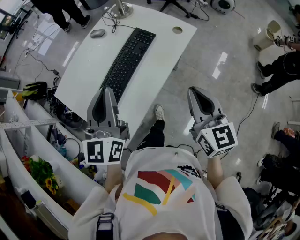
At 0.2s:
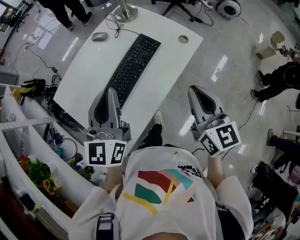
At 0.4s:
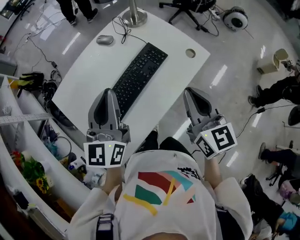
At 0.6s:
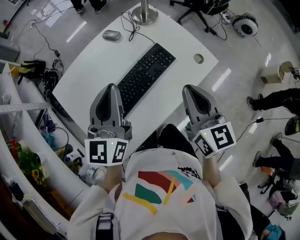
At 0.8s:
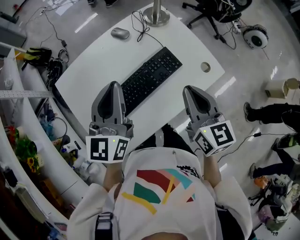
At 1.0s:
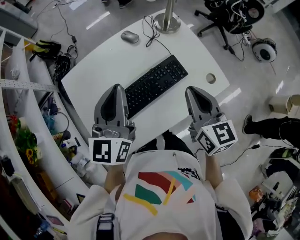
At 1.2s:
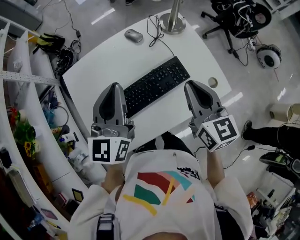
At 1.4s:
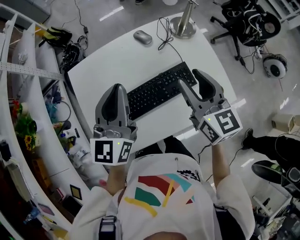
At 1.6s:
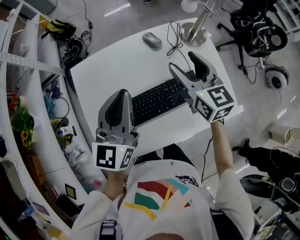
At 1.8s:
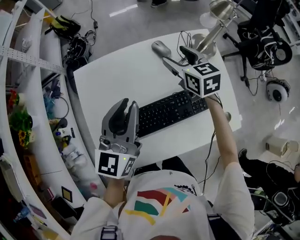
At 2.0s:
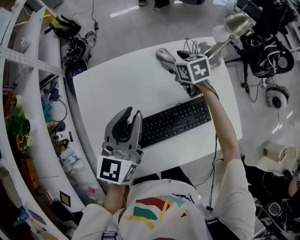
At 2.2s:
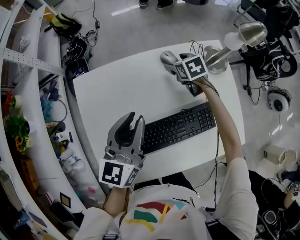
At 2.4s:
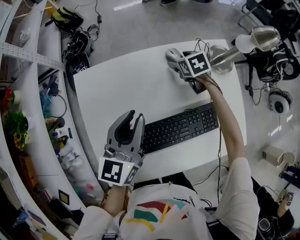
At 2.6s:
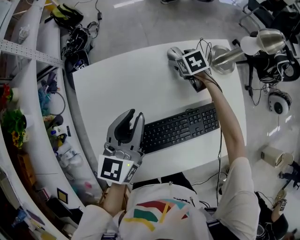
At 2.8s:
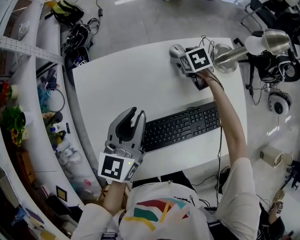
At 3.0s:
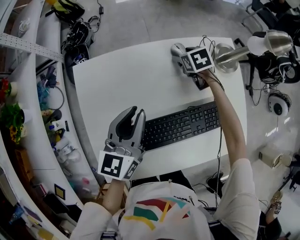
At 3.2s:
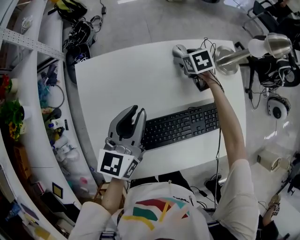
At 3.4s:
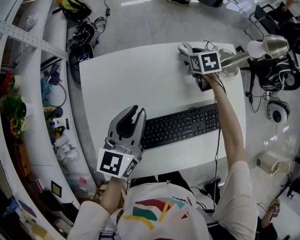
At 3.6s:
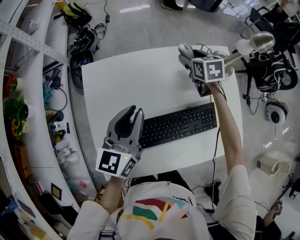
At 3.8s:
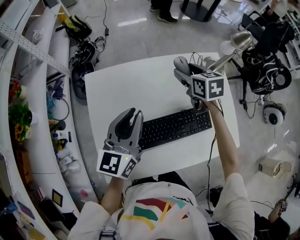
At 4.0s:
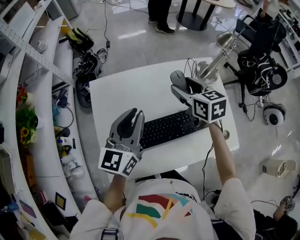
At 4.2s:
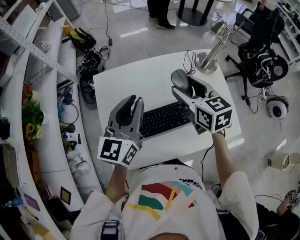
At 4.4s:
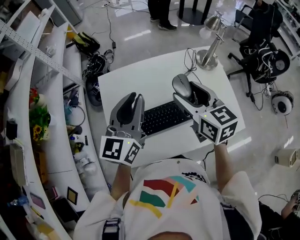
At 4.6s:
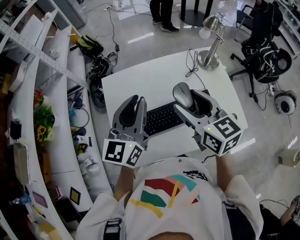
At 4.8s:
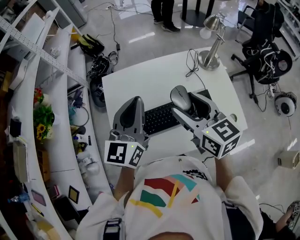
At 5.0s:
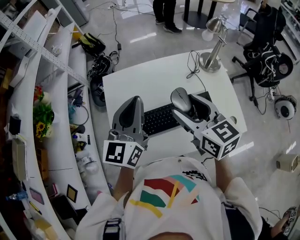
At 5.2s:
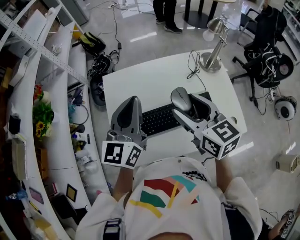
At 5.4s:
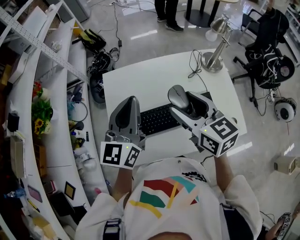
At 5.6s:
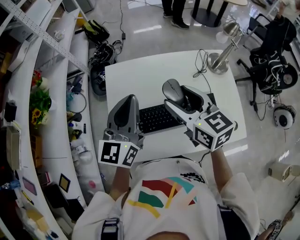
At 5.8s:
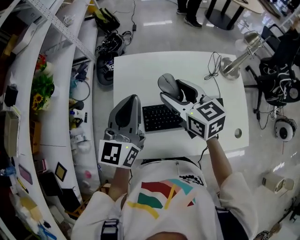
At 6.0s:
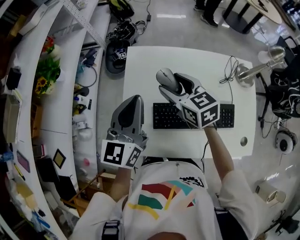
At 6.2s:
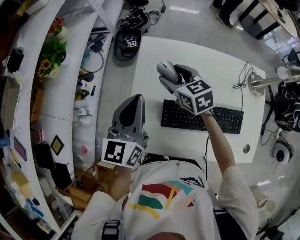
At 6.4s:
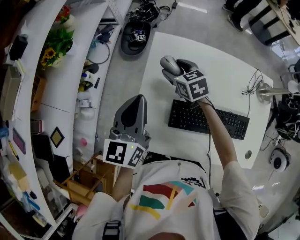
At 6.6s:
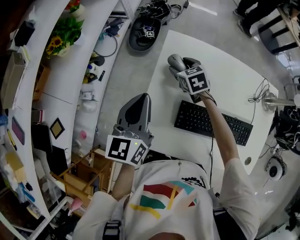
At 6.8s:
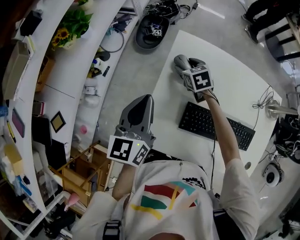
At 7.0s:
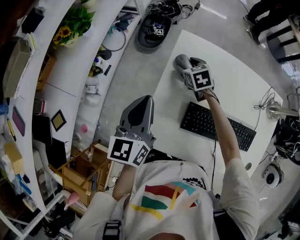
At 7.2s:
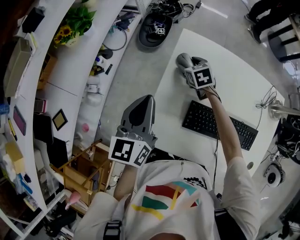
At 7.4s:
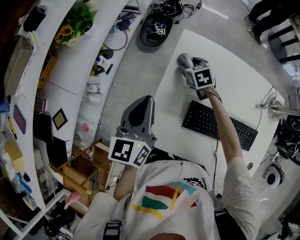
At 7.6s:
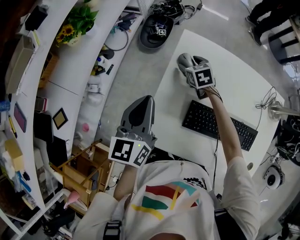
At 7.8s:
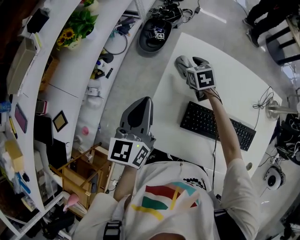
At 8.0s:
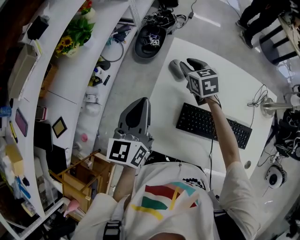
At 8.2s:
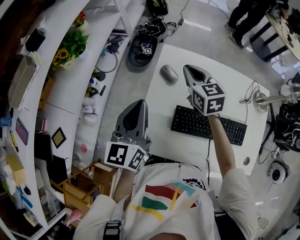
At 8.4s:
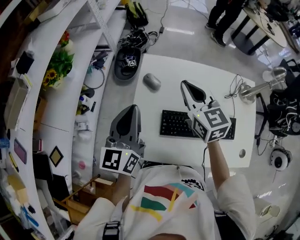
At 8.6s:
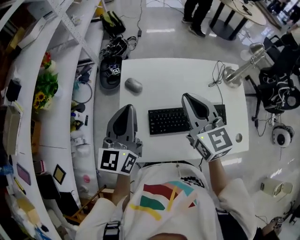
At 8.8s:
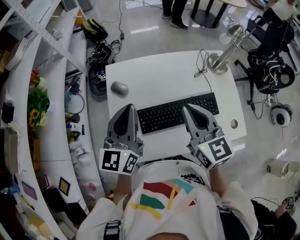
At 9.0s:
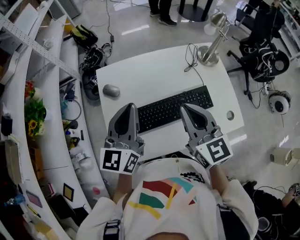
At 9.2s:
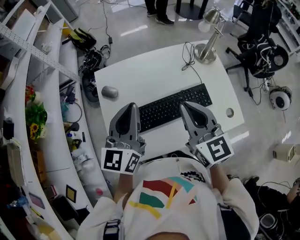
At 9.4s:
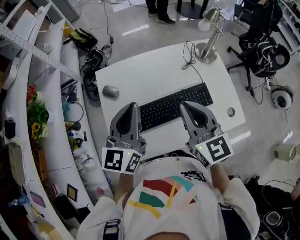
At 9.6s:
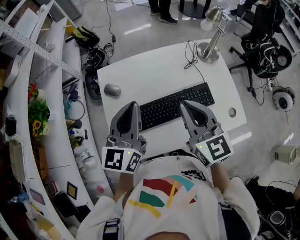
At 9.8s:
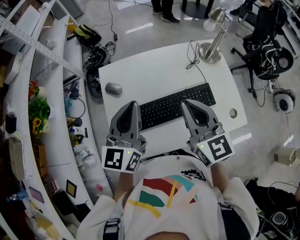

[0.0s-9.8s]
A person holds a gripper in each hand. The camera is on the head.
0.0s to 1.4s: The right gripper ends up roughly 30 cm from where it was, turns by about 40 degrees, and opens its fingers. The left gripper moves about 15 cm, and rotates approximately 20 degrees.
1.4s to 2.8s: The right gripper is displaced forward and downward by roughly 40 cm, tips its fingers downward by approximately 50 degrees, and opens its fingers. Meanwhile the left gripper travels downward, forward and to the left by approximately 20 cm.
2.8s to 4.2s: The right gripper moves upward and backward, roughly 40 cm, and tilts its fingers roughly 40 degrees upward. Meanwhile the left gripper is displaced upward and backward by roughly 15 cm.
4.2s to 5.6s: The left gripper moves about 5 cm. Meanwhile the right gripper is displaced to the left and backward by roughly 10 cm.
5.6s to 7.0s: The left gripper goes about 25 cm to the left and downward, and swivels approximately 30 degrees, while the right gripper travels downward, forward and to the left by about 40 cm, and tilts its fingers some 30 degrees downward.
7.0s to 8.4s: The right gripper travels upward and backward by about 30 cm, tilts its fingers approximately 30 degrees upward, and closes its fingers; the left gripper moves upward, about 10 cm.
8.4s to 9.8s: The right gripper travels to the right and backward by some 25 cm, and swivels about 20 degrees. Meanwhile the left gripper shifts about 20 cm to the right, and rotates roughly 20 degrees.

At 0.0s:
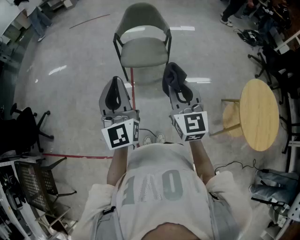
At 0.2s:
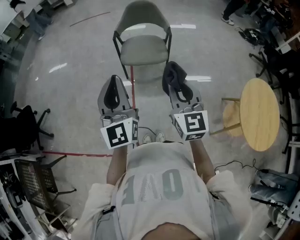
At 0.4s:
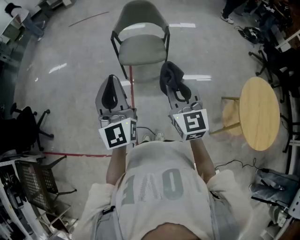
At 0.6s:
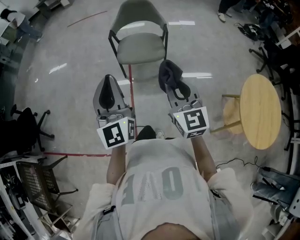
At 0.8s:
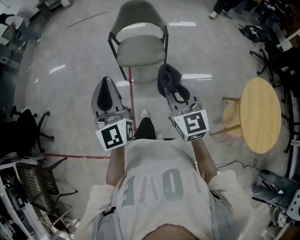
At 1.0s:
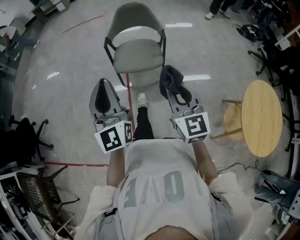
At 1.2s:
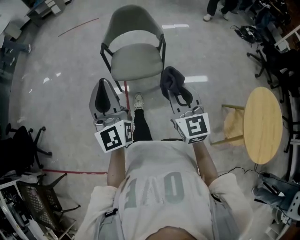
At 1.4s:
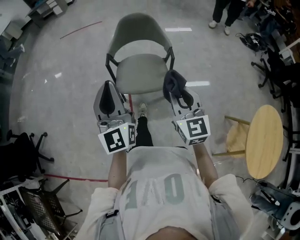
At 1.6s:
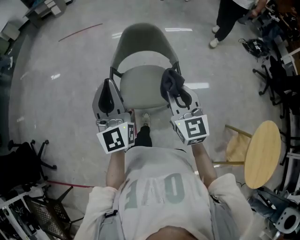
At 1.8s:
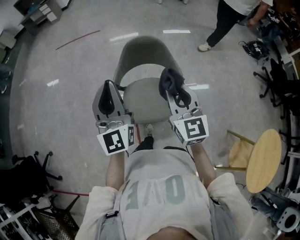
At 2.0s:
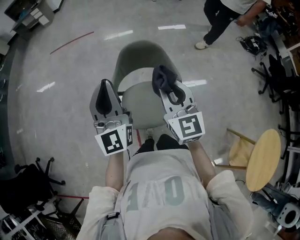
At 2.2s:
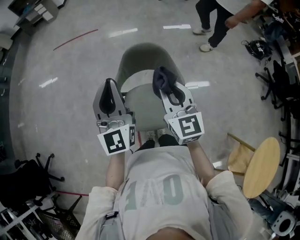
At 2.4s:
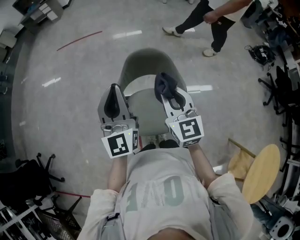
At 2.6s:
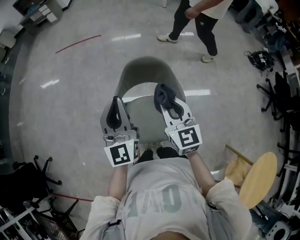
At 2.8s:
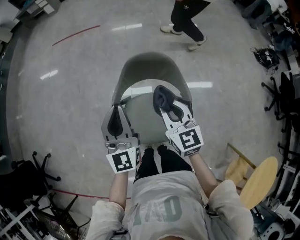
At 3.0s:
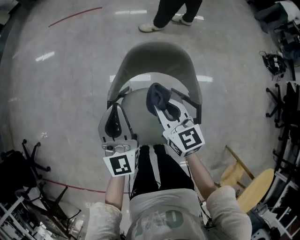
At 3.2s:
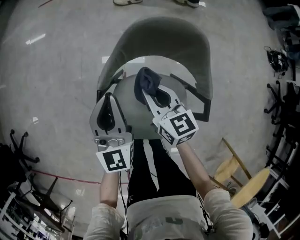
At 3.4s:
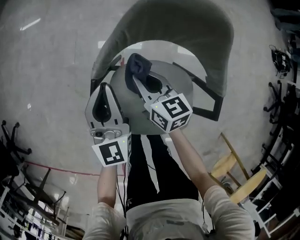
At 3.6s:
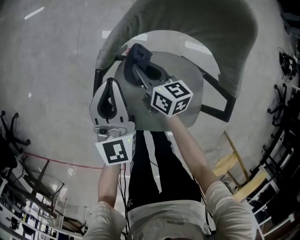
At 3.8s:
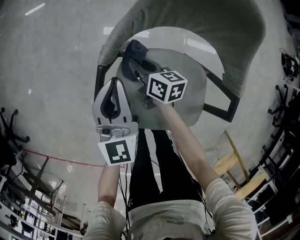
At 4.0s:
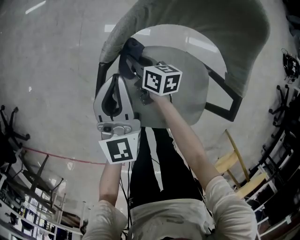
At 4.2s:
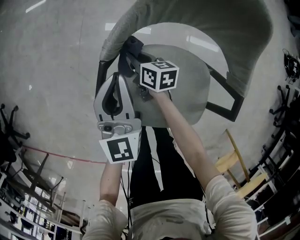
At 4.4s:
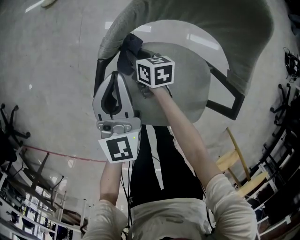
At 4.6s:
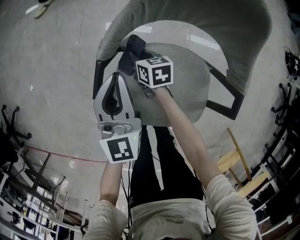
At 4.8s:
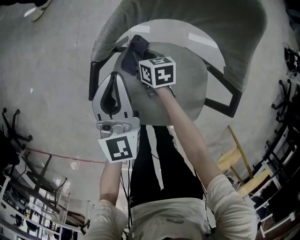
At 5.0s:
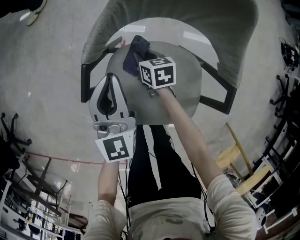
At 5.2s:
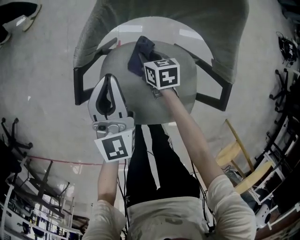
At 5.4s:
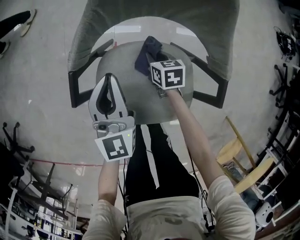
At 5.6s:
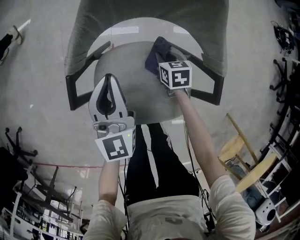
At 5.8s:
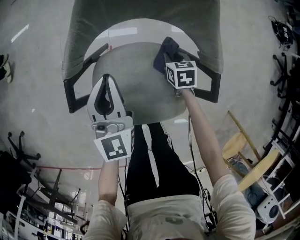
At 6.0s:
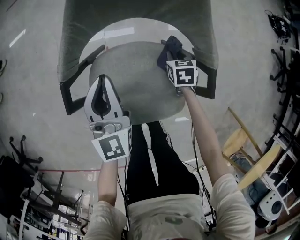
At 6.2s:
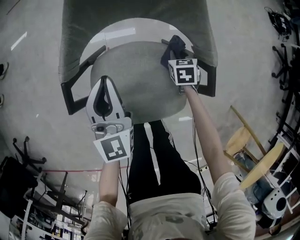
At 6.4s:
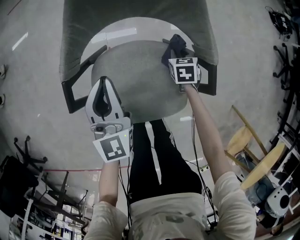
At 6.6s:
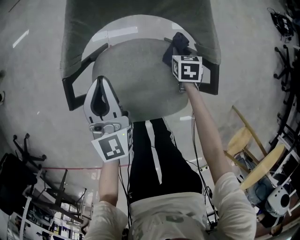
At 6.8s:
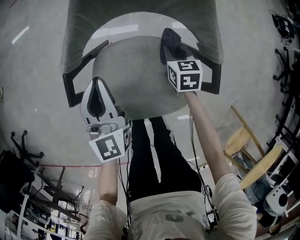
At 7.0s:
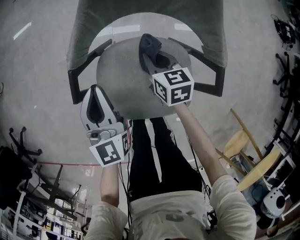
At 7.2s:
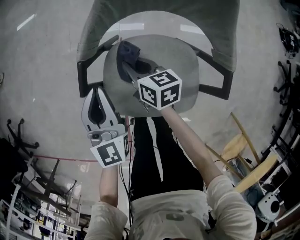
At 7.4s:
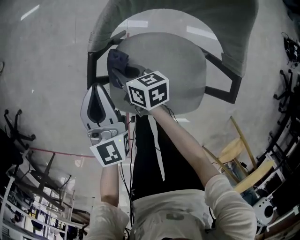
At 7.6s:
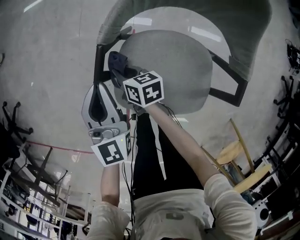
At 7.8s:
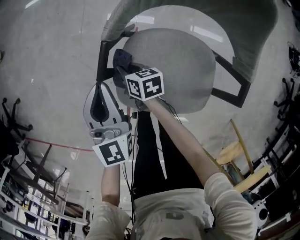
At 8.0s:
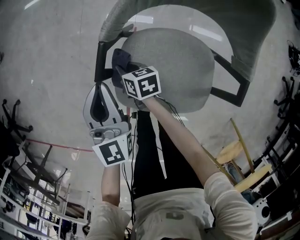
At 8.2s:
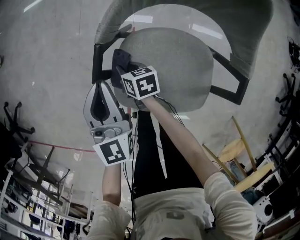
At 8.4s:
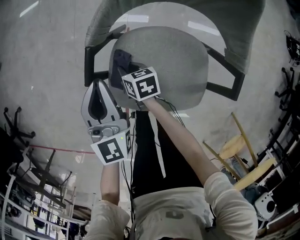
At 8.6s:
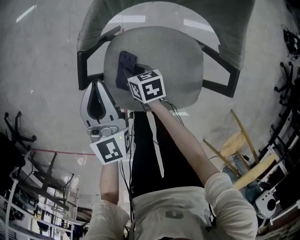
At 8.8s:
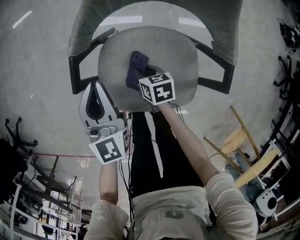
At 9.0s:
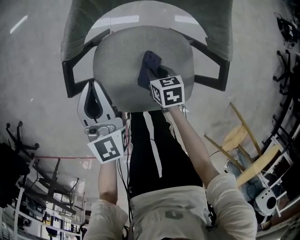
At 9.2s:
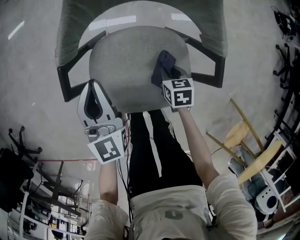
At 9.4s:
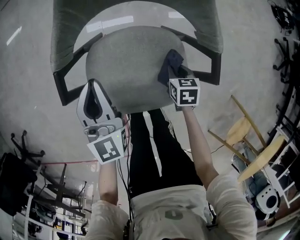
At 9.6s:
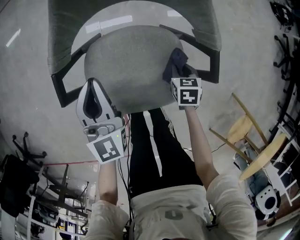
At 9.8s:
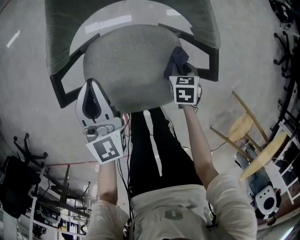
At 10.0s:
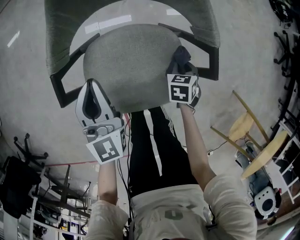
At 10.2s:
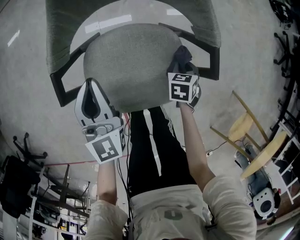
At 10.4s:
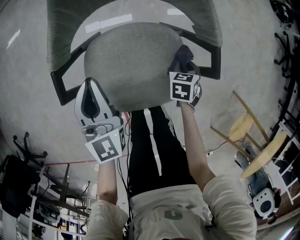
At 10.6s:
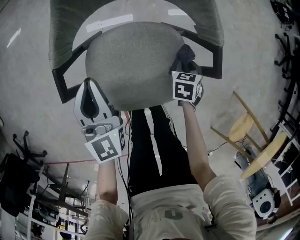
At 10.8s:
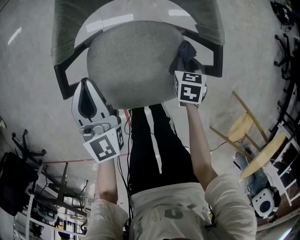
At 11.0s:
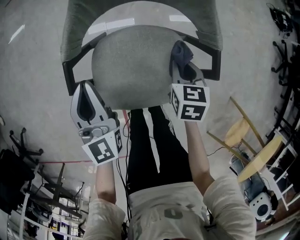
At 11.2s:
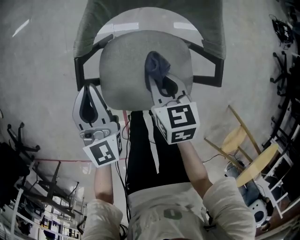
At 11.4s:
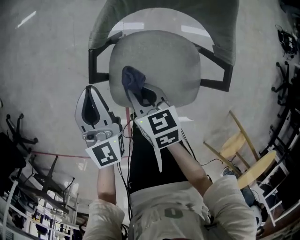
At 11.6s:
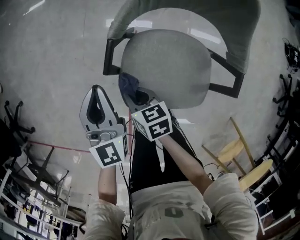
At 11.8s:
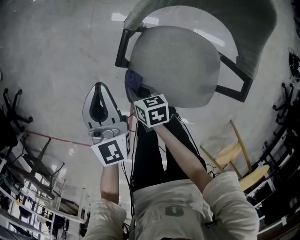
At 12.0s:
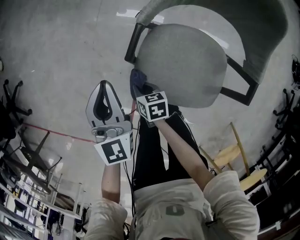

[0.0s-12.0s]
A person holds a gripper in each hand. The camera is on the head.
0.0s to 1.6s: The grippers both shift forward by about 40 cm.
1.6s to 3.0s: Both grippers travel together forward and downward, roughly 35 cm. The right gripper changes its angle by approximately 20 degrees.
3.0s to 4.4s: The right gripper moves downward, about 40 cm, and swivels about 40 degrees, while the left gripper is displaced downward by some 25 cm.
4.4s to 6.0s: The left gripper changes place by approximately 10 cm. Meanwhile the right gripper changes place by roughly 30 cm, and turns by about 40 degrees.
6.0s to 7.6s: The right gripper ends up some 40 cm from where it was, and rotates about 40 degrees; the left gripper shifts by about 15 cm.
7.6s to 9.0s: The right gripper goes approximately 25 cm to the right and backward, and changes its angle by about 30 degrees. The left gripper shifts some 10 cm to the right.
9.0s to 10.4s: The right gripper moves about 15 cm, and changes its angle by about 30 degrees.
10.4s to 12.0s: The left gripper ends up about 20 cm from where it was, while the right gripper moves about 15 cm upward and comes back, and swivels roughly 50 degrees.

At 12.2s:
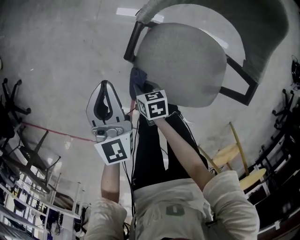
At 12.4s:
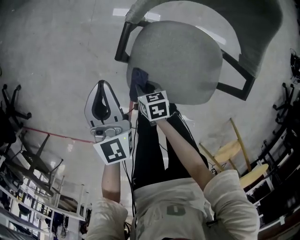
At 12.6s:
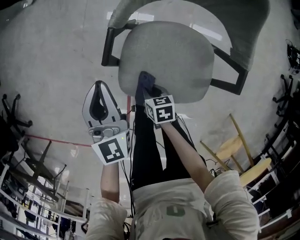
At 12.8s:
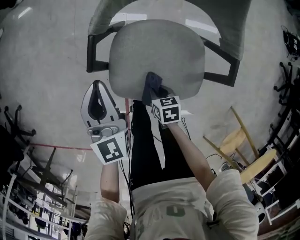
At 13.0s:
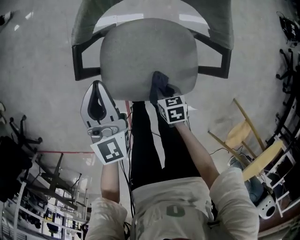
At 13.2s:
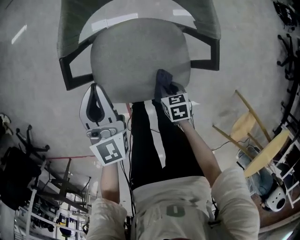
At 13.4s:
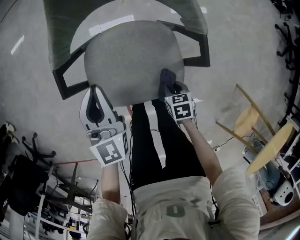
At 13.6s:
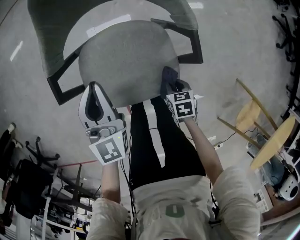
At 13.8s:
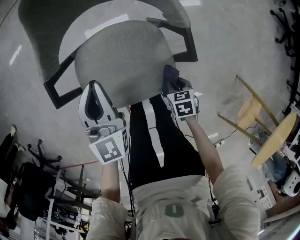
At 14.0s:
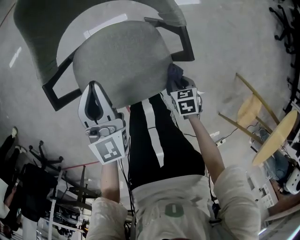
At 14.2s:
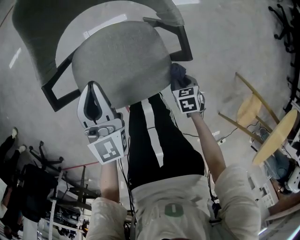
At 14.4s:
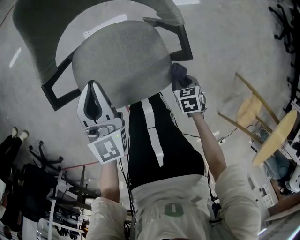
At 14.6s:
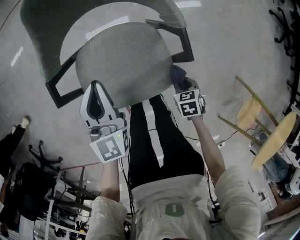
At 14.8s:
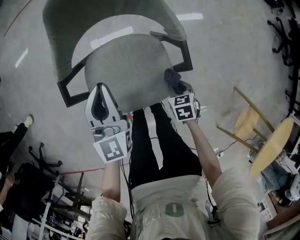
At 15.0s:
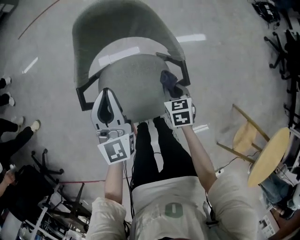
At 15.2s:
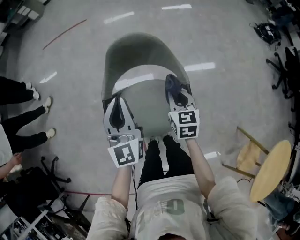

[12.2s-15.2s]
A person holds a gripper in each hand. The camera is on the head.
12.2s to 13.8s: The left gripper changes place by some 25 cm, and turns by some 30 degrees; the right gripper moves approximately 35 cm, and rotates approximately 30 degrees.
13.8s to 15.2s: Both grippers travel together upward, some 30 cm. The right gripper tilts its fingers approximately 40 degrees upward.
